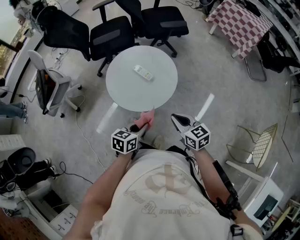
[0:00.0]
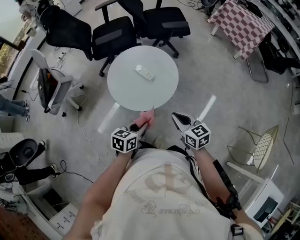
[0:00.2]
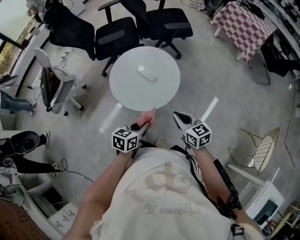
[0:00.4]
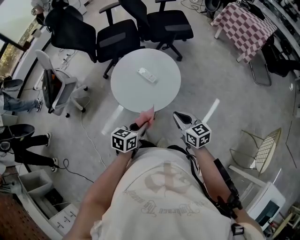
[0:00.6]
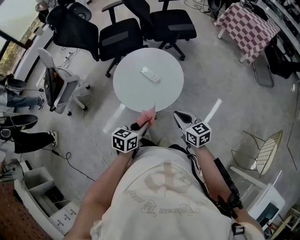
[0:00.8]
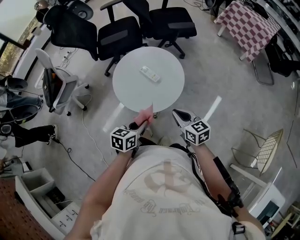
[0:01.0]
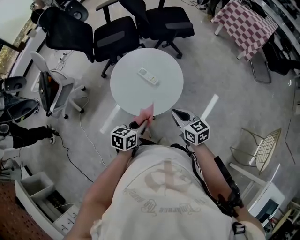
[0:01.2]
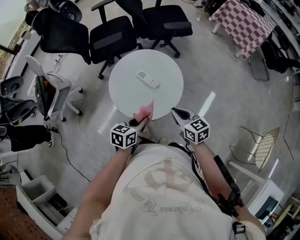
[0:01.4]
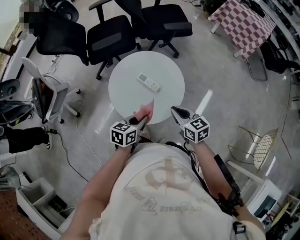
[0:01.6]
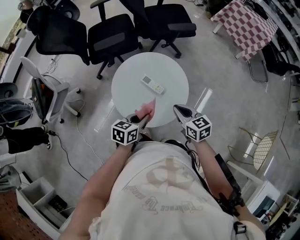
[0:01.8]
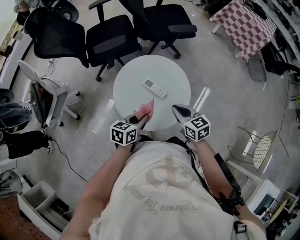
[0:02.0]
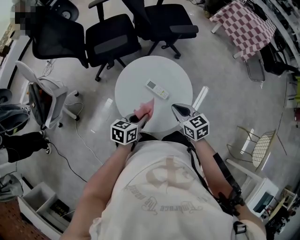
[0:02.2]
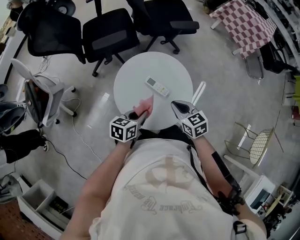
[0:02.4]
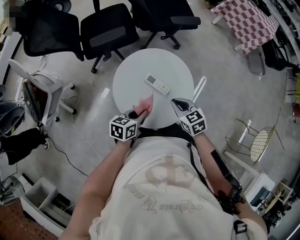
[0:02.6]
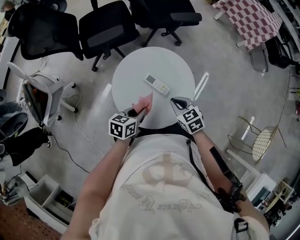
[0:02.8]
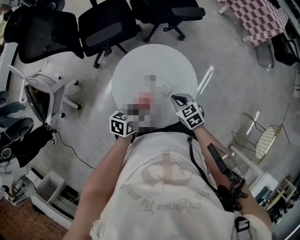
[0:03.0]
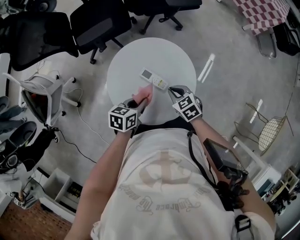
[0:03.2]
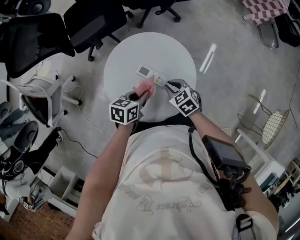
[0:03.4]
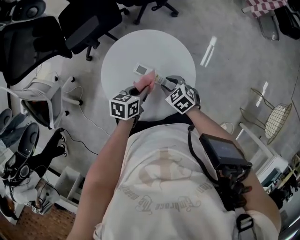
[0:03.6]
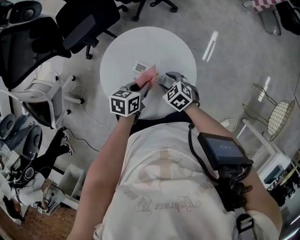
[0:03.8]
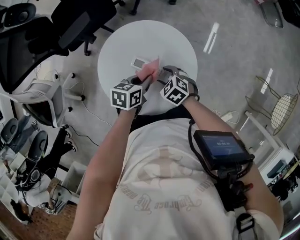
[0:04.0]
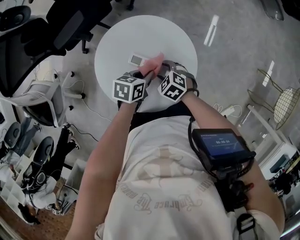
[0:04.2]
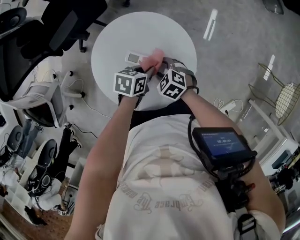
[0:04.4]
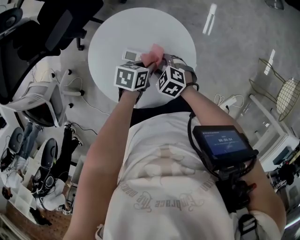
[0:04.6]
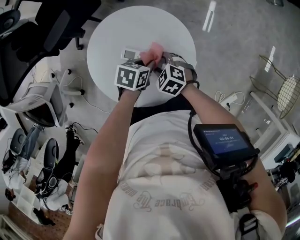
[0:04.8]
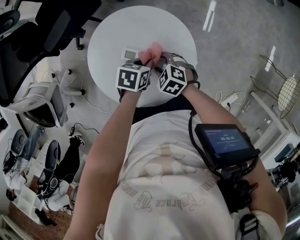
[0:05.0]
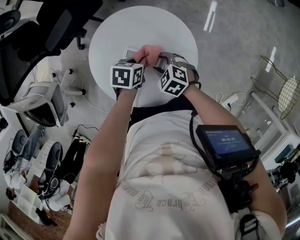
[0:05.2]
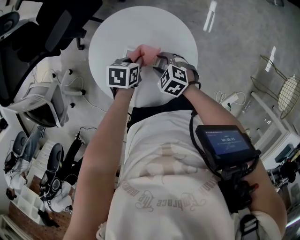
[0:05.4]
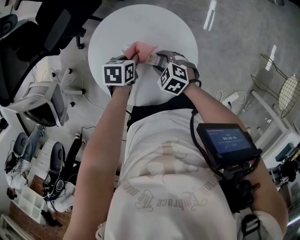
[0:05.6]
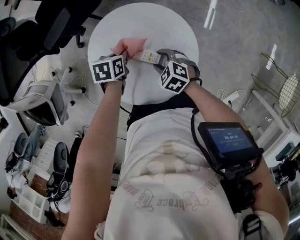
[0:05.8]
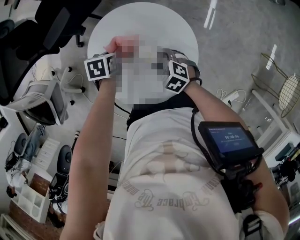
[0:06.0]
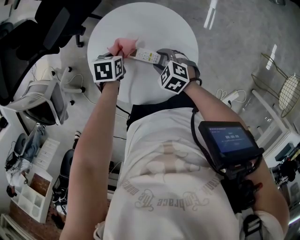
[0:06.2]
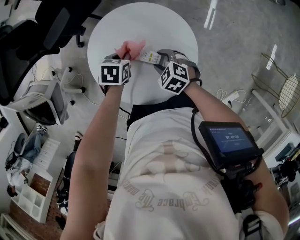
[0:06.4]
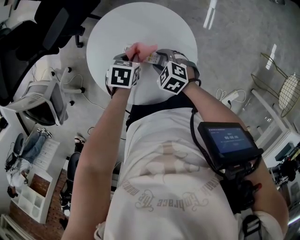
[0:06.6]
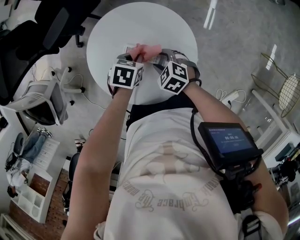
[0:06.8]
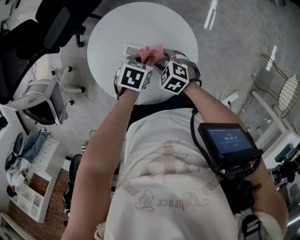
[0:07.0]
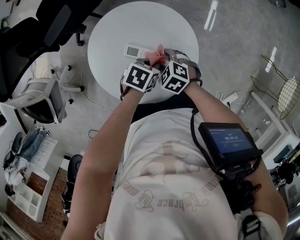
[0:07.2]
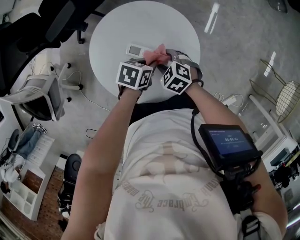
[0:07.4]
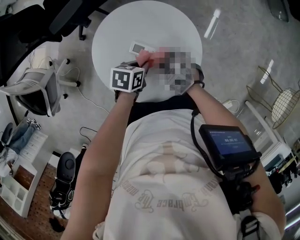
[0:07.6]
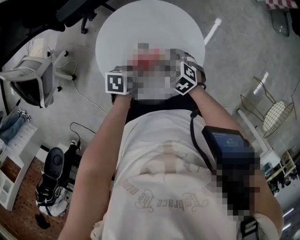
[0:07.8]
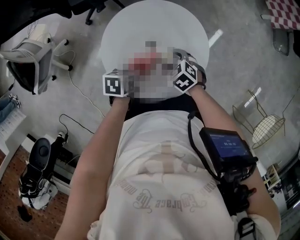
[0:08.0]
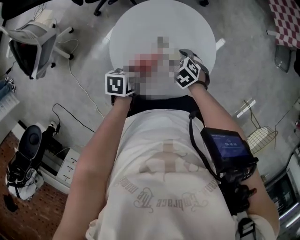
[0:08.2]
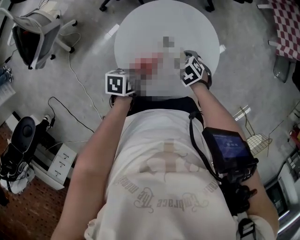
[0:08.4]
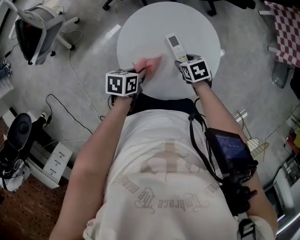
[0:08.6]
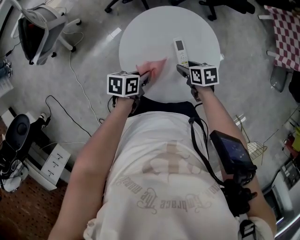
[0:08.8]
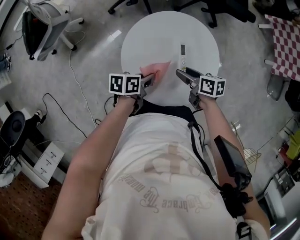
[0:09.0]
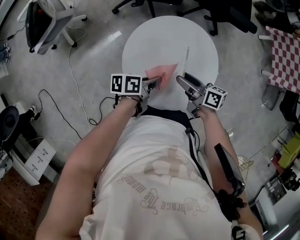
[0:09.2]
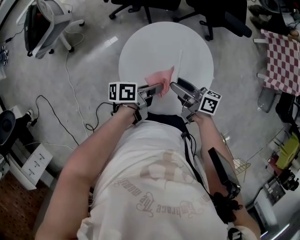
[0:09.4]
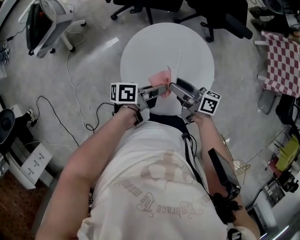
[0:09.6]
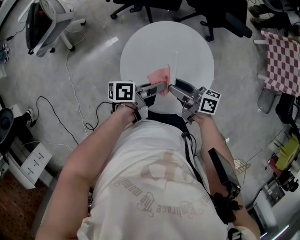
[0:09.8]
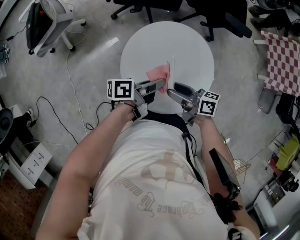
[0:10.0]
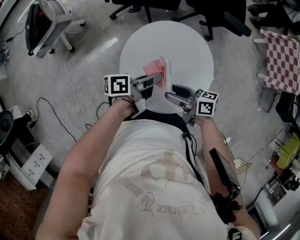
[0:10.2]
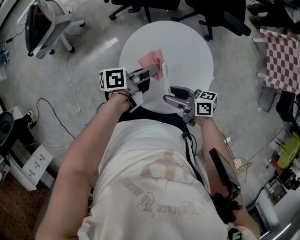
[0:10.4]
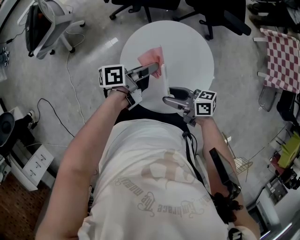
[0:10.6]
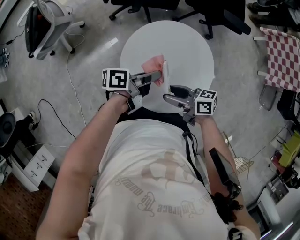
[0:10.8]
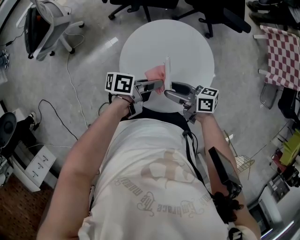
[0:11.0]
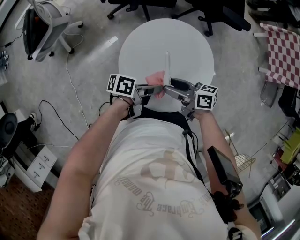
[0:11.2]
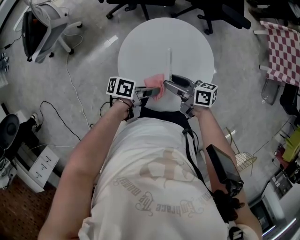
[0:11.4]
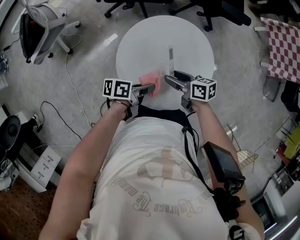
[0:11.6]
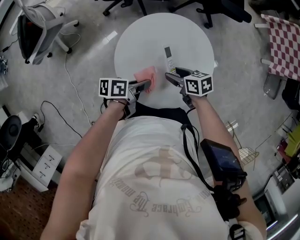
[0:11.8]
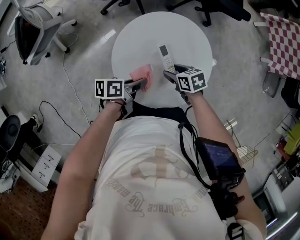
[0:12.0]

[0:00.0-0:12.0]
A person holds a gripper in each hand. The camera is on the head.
0:00.0 to 0:01.6: Both grippers move forward, roughly 10 cm.
0:01.6 to 0:03.0: The left gripper heads forward and to the left, covering some 10 cm. The right gripper moves downward, forward and to the left, roughly 15 cm, and changes its angle by about 30 degrees.
0:03.0 to 0:04.4: The right gripper moves downward, roughly 10 cm, and opens up; the left gripper shifts by about 15 cm, and turns by some 20 degrees.
0:04.4 to 0:06.0: The left gripper moves some 15 cm, and turns by some 20 degrees.
0:06.0 to 0:07.6: The left gripper moves about 15 cm.
0:07.6 to 0:09.0: The right gripper ends up about 5 cm from where it was, and turns by approximately 50 degrees, while the left gripper ends up about 10 cm from where it was, and rotates approximately 50 degrees.
0:09.0 to 0:10.4: The right gripper shifts by about 10 cm, and changes its angle by approximately 30 degrees, while the left gripper is displaced upward by about 10 cm, and points its fingers roughly 30 degrees further upward.
0:10.4 to 0:12.0: The two grippers go about 10 cm downward. The left gripper rotates roughly 30 degrees. Meanwhile the right gripper angles its fingers downward, by about 40 degrees.

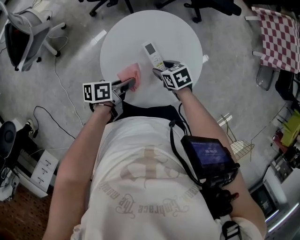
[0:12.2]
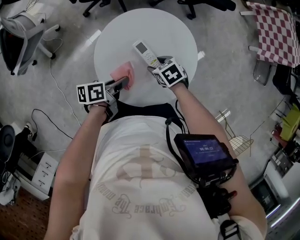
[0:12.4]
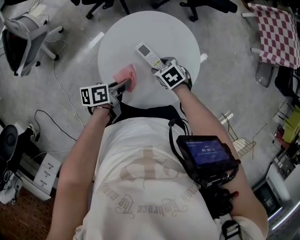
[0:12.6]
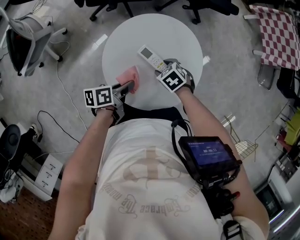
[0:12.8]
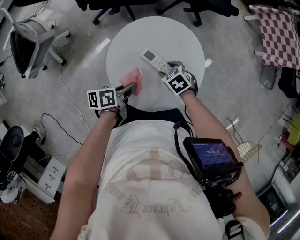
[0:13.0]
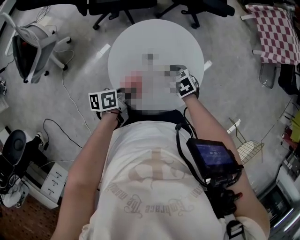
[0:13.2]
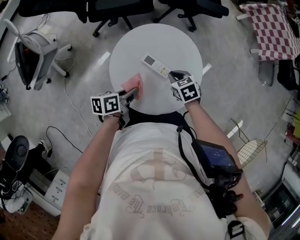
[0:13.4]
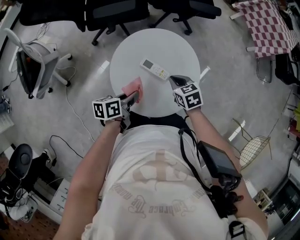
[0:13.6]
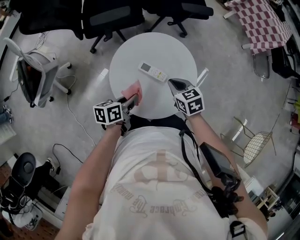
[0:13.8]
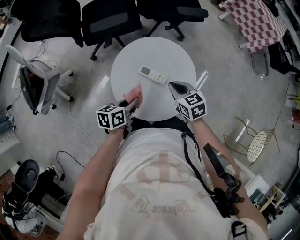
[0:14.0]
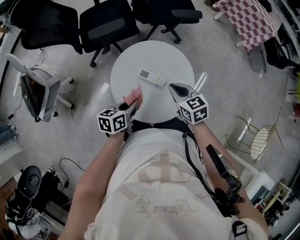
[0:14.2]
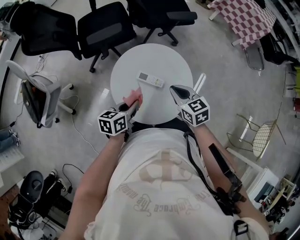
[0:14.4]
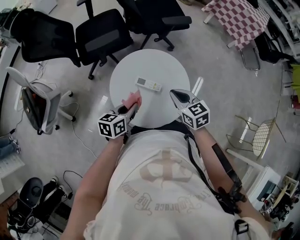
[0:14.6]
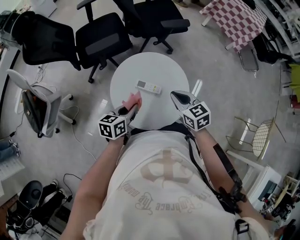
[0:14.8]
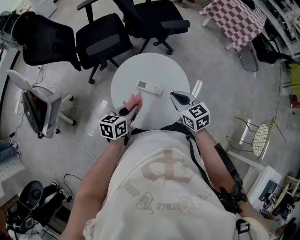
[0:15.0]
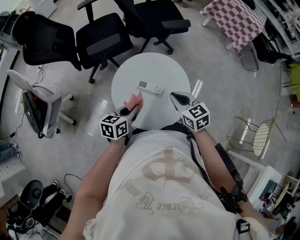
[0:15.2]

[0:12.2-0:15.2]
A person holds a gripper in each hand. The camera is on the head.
0:12.2 to 0:13.8: The left gripper moves approximately 5 cm, and rotates some 20 degrees, while the right gripper shifts approximately 10 cm upward, rotates some 30 degrees, and closes.
0:13.8 to 0:15.2: The left gripper heads upward, covering some 5 cm, and changes its angle by roughly 20 degrees. Meanwhile the right gripper is displaced upward by about 10 cm.

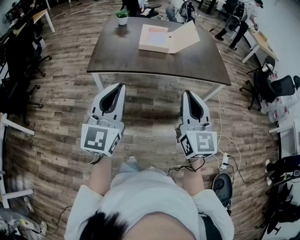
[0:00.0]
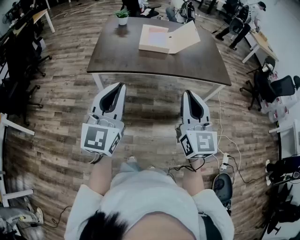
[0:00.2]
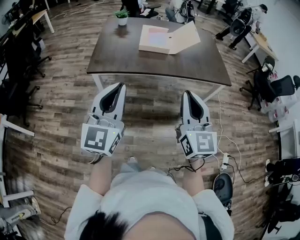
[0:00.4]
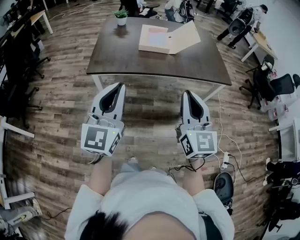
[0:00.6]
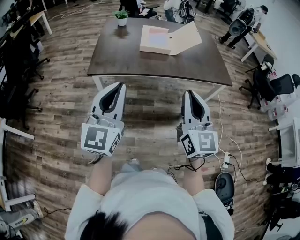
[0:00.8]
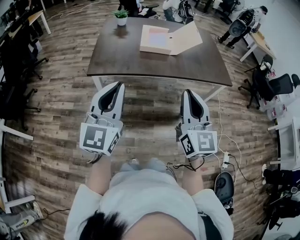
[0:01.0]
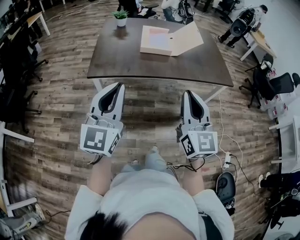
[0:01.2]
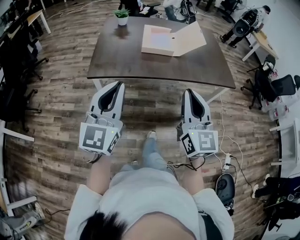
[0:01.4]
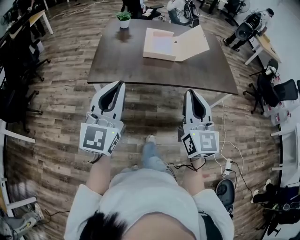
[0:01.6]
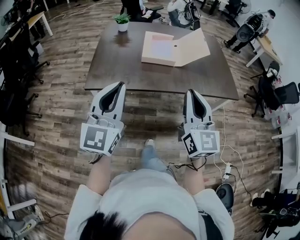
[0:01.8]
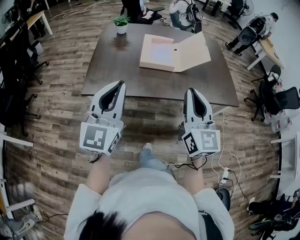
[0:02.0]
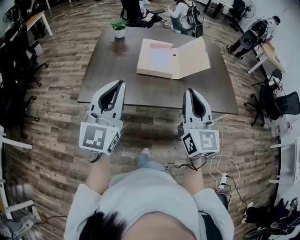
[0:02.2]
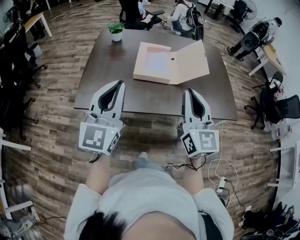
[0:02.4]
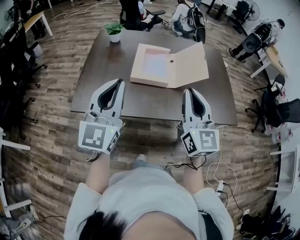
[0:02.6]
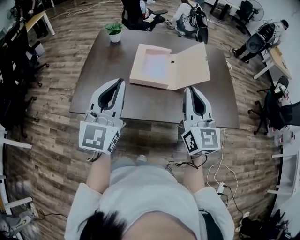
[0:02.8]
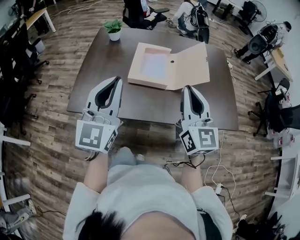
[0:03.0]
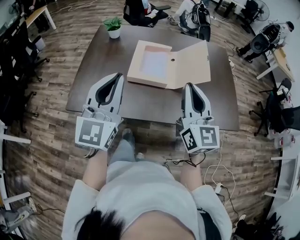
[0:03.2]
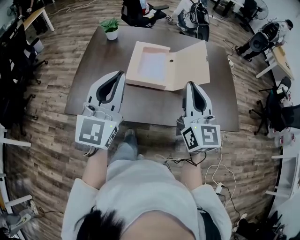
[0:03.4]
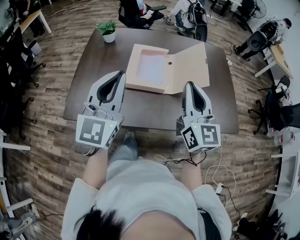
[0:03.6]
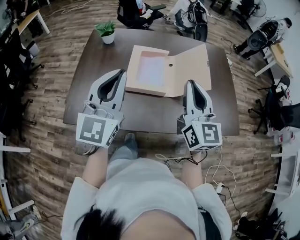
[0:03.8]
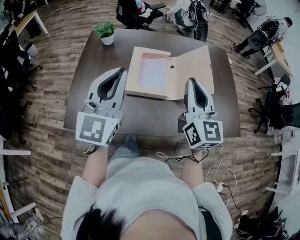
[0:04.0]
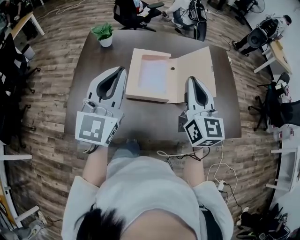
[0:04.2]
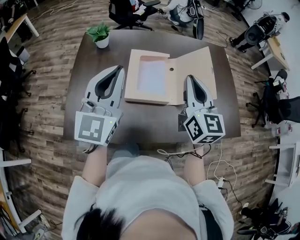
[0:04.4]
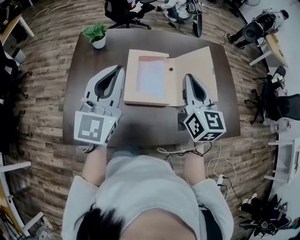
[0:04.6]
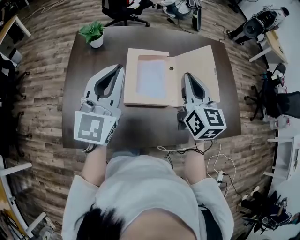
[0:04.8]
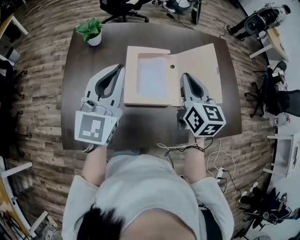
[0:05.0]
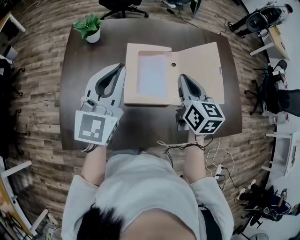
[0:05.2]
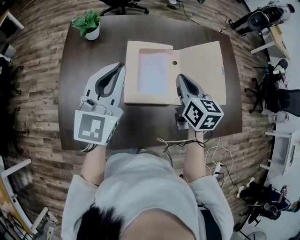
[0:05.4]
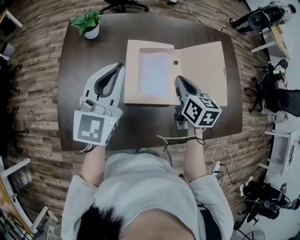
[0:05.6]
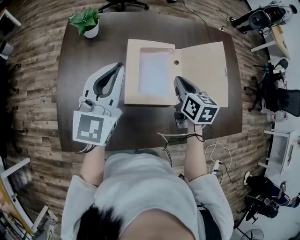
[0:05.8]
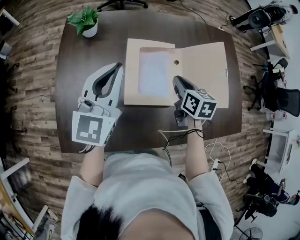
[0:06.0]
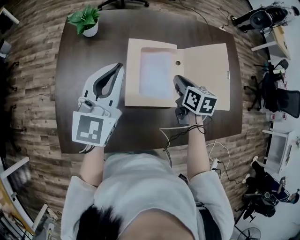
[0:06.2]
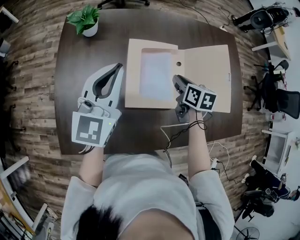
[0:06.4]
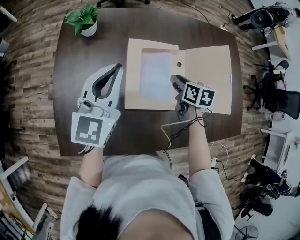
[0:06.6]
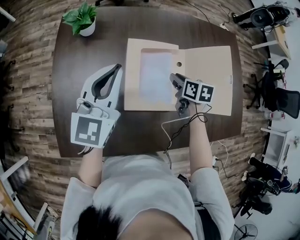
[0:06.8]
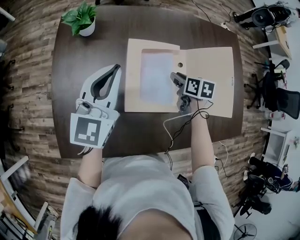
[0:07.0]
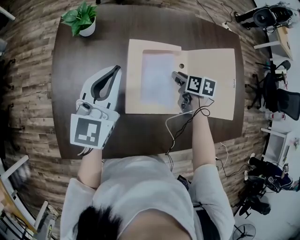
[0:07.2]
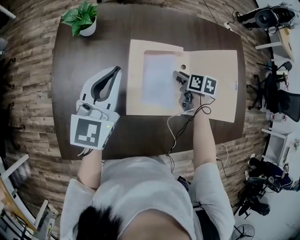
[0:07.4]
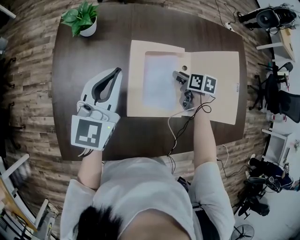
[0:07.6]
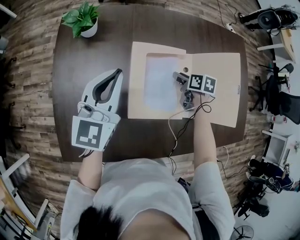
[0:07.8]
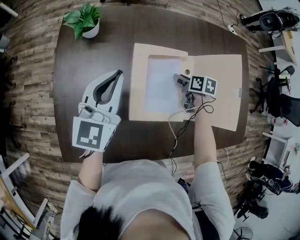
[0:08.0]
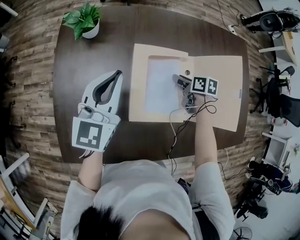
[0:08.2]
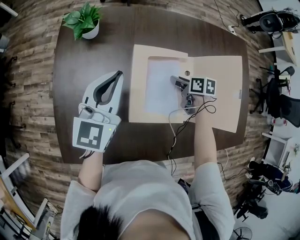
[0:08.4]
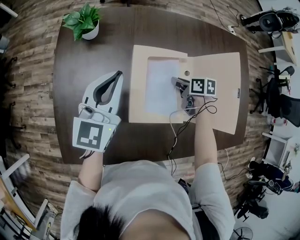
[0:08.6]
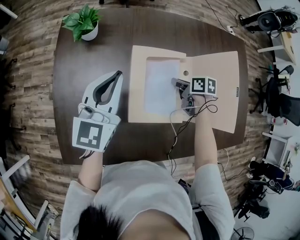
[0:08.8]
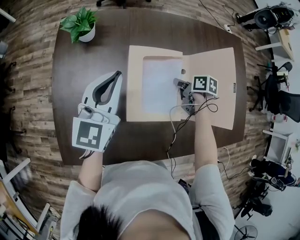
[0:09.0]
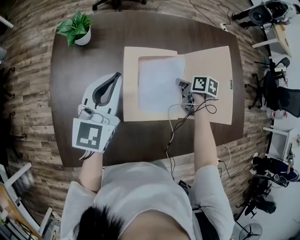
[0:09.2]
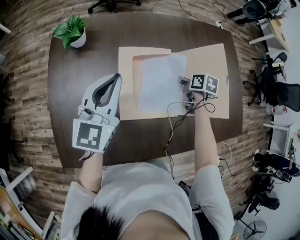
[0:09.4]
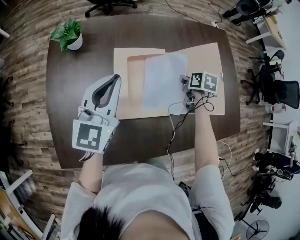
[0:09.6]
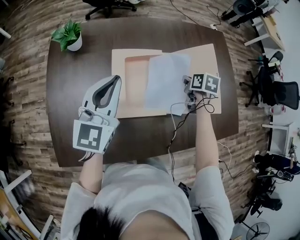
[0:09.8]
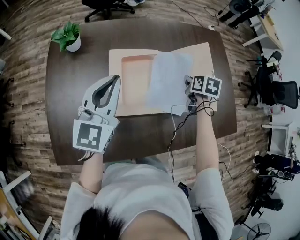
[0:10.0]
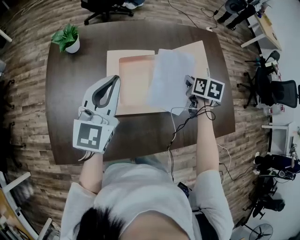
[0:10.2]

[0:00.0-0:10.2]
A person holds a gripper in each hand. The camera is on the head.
0:00.0 to 0:01.4: The right gripper is displaced forward by some 5 cm. Meanwhile the left gripper is displaced forward and to the left by roughly 10 cm.
0:01.4 to 0:03.0: Both grippers move forward, approximately 35 cm.
0:03.0 to 0:04.4: Both grippers travel together forward, roughly 20 cm.
0:04.4 to 0:05.8: The left gripper is displaced forward and downward by roughly 15 cm; the right gripper travels downward and forward by some 20 cm, and tips its fingers downward by about 30 degrees.
0:05.8 to 0:07.2: The right gripper moves downward and forward, approximately 15 cm, turns by some 20 degrees, and opens its fingers; the left gripper is displaced forward and downward by approximately 10 cm.
0:07.2 to 0:08.8: The right gripper closes its fingers.
0:08.8 to 0:10.2: The right gripper shifts by some 20 cm, and turns by roughly 30 degrees. The left gripper moves approximately 15 cm.
